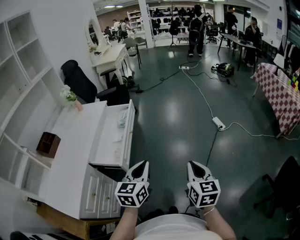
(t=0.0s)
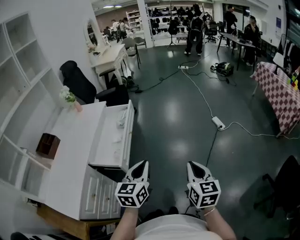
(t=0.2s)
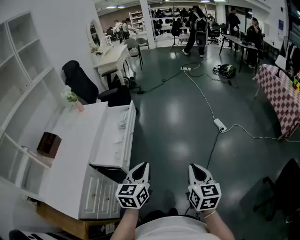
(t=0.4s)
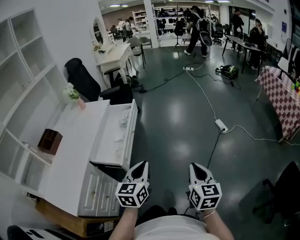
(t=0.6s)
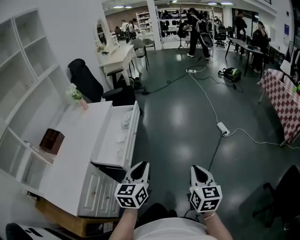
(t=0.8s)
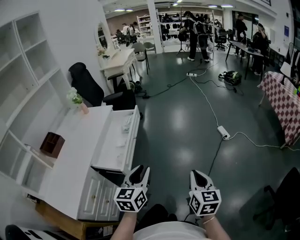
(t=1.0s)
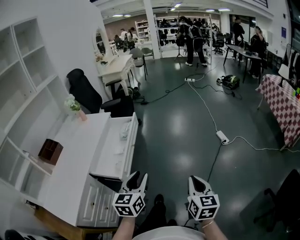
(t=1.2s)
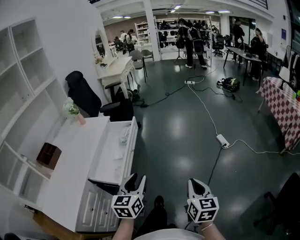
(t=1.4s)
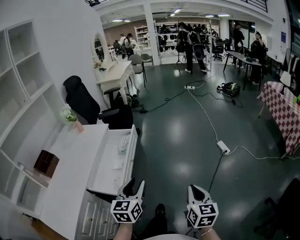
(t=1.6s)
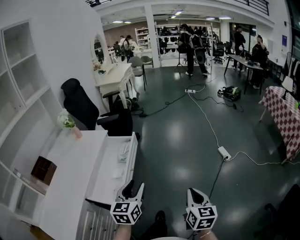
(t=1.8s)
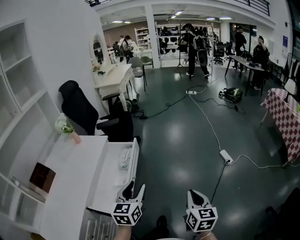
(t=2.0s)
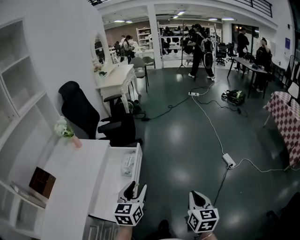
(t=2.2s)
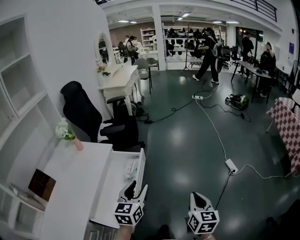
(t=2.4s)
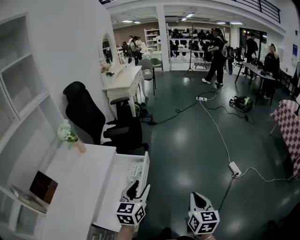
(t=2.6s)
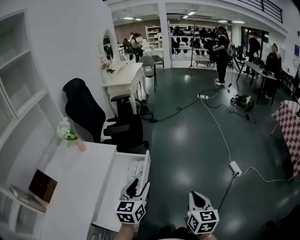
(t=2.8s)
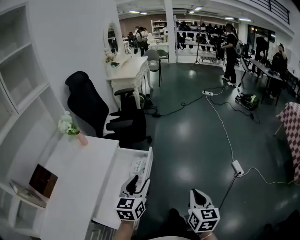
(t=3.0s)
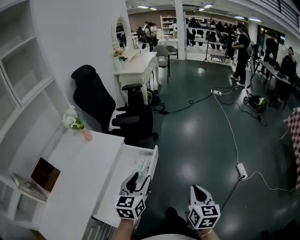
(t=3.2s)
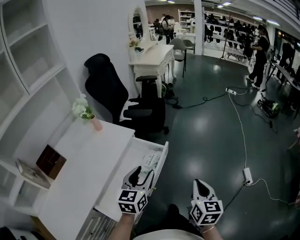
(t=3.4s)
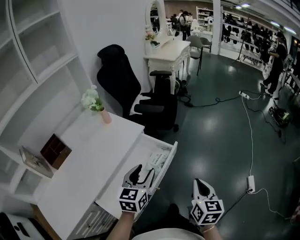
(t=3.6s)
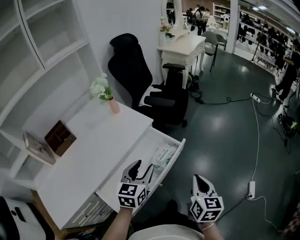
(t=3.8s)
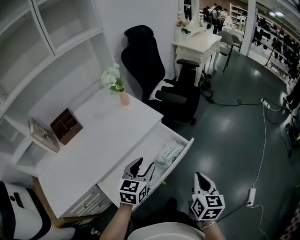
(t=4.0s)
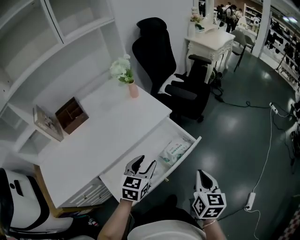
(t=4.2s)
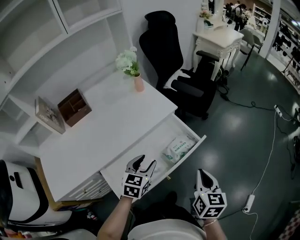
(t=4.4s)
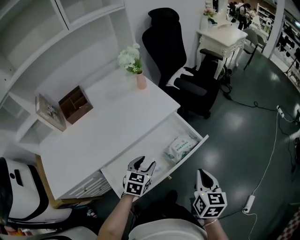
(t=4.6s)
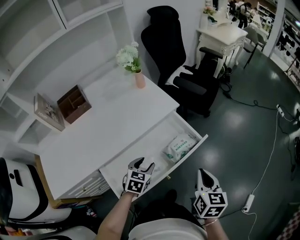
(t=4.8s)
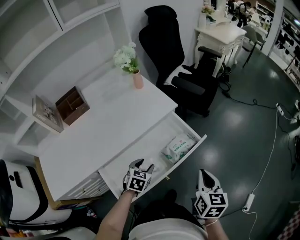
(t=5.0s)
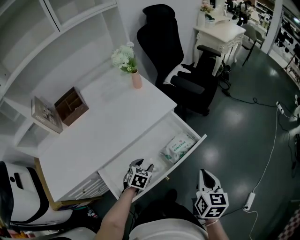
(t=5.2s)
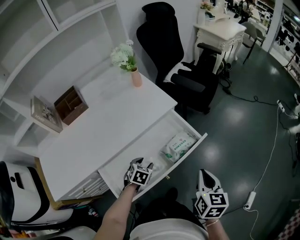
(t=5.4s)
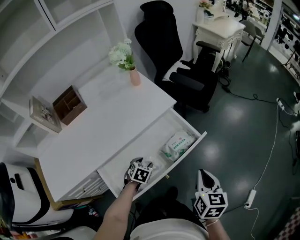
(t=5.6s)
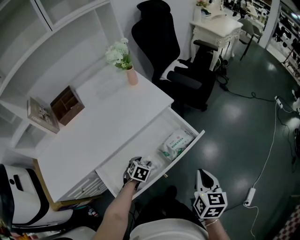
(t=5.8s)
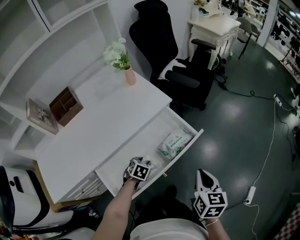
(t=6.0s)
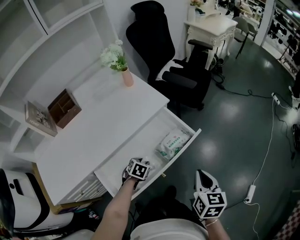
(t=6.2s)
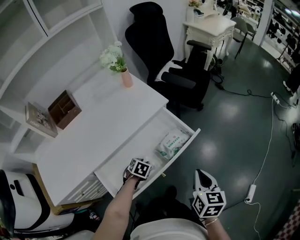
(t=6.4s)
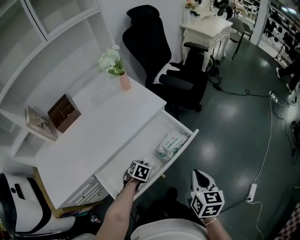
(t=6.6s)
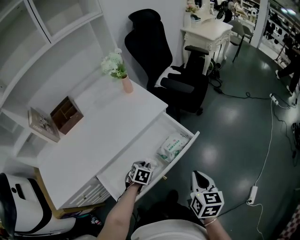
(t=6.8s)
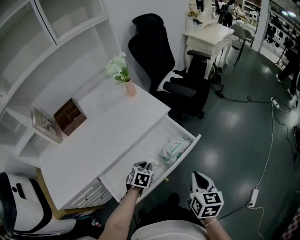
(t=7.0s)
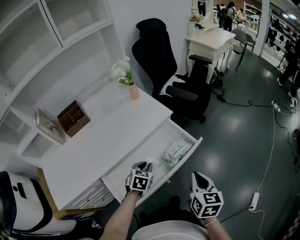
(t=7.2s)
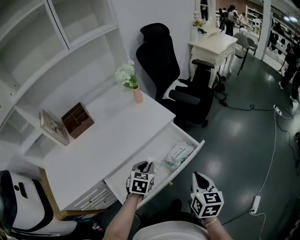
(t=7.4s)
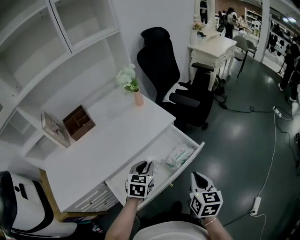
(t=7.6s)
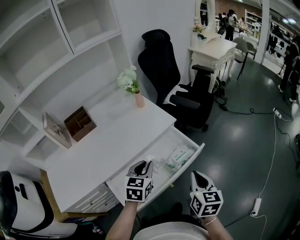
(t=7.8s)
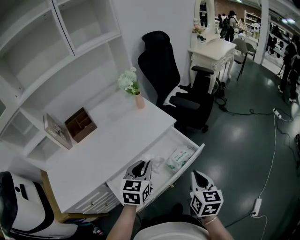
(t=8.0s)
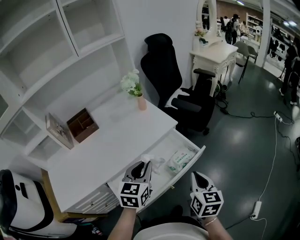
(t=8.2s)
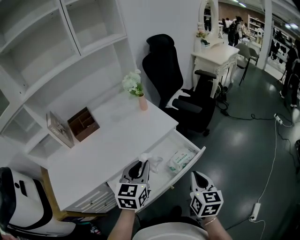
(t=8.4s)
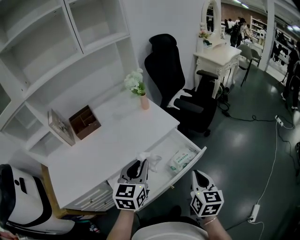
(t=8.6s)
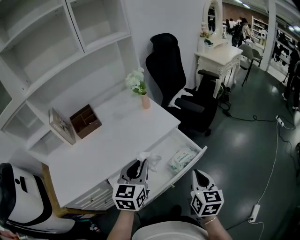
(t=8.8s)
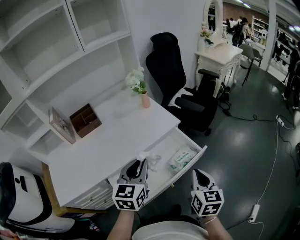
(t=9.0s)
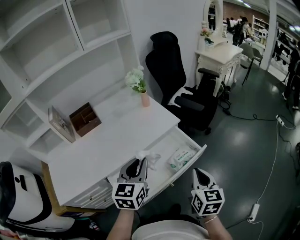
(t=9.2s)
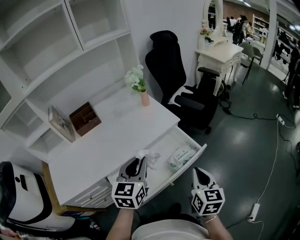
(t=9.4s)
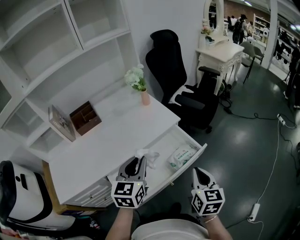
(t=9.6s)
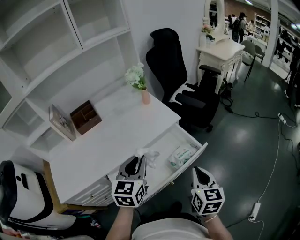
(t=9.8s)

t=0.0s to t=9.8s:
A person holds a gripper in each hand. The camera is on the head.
t=0.0s to t=1.4s: The right gripper shifts by some 5 cm, while the left gripper goes roughly 5 cm forward, and opens.
t=1.4s to t=2.8s: The left gripper is displaced forward by about 30 cm. Meanwhile the right gripper heads forward and to the left, covering about 30 cm.
t=2.8s to t=4.2s: The left gripper ends up some 15 cm from where it was, and turns by about 30 degrees; the right gripper ends up roughly 20 cm from where it was, and rotates approximately 40 degrees.
t=4.2s to t=5.6s: The left gripper heads downward, covering some 20 cm, and angles its fingers downward, by some 40 degrees.
t=5.6s to t=7.0s: The left gripper is displaced upward by approximately 5 cm, and closes its fingers.
t=7.0s to t=8.4s: The right gripper shifts by roughly 5 cm, while the left gripper is displaced upward by roughly 25 cm, and tilts its fingers approximately 40 degrees upward.
t=8.4s to t=9.8s: There are only small adjustments of the grippers.

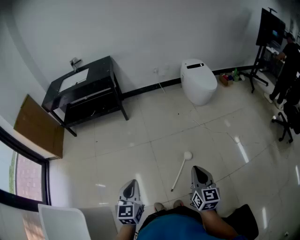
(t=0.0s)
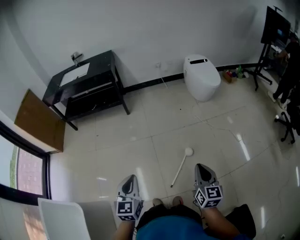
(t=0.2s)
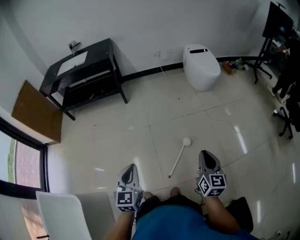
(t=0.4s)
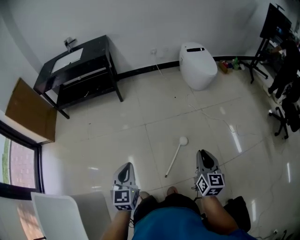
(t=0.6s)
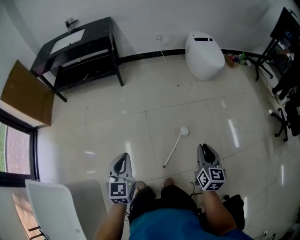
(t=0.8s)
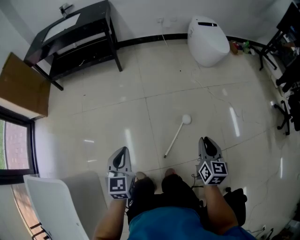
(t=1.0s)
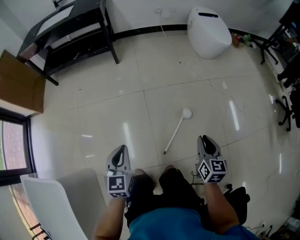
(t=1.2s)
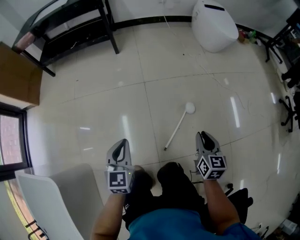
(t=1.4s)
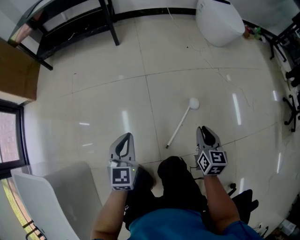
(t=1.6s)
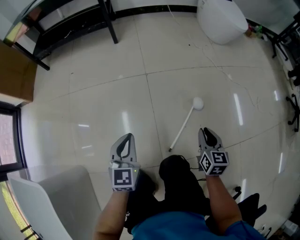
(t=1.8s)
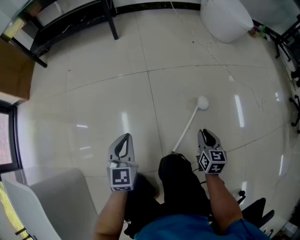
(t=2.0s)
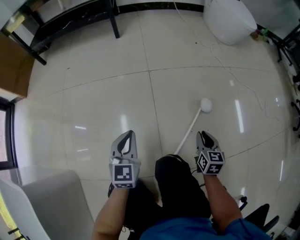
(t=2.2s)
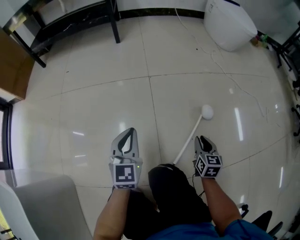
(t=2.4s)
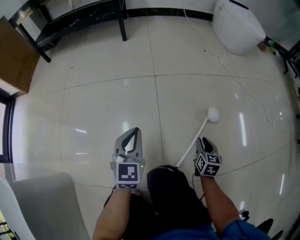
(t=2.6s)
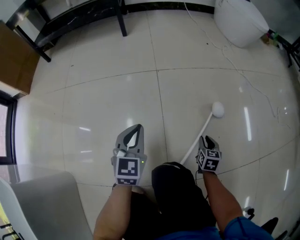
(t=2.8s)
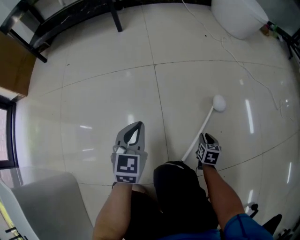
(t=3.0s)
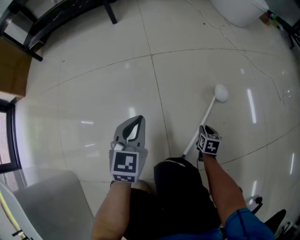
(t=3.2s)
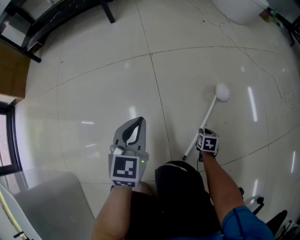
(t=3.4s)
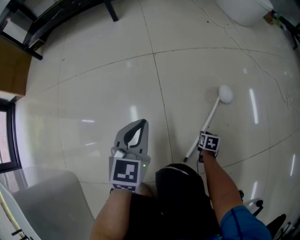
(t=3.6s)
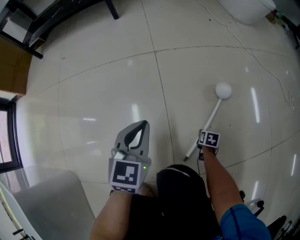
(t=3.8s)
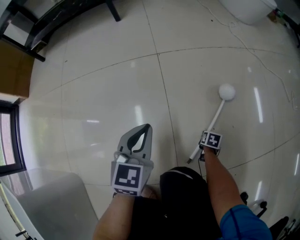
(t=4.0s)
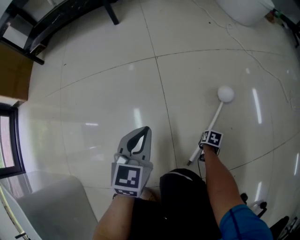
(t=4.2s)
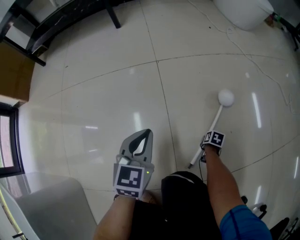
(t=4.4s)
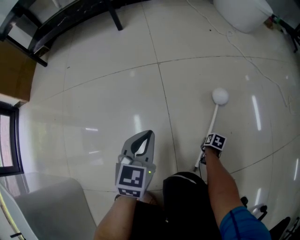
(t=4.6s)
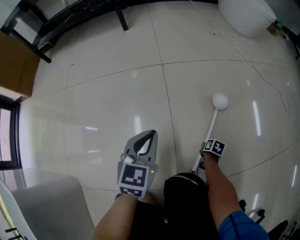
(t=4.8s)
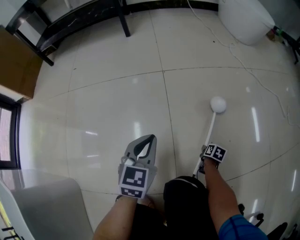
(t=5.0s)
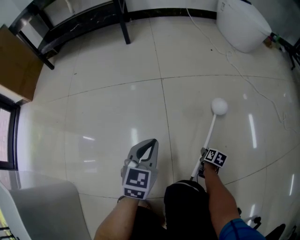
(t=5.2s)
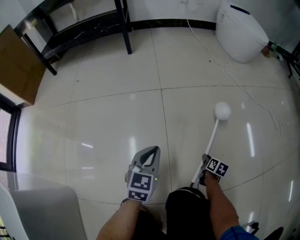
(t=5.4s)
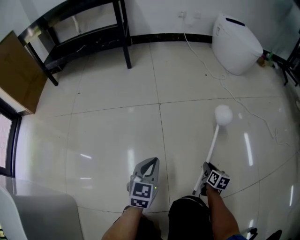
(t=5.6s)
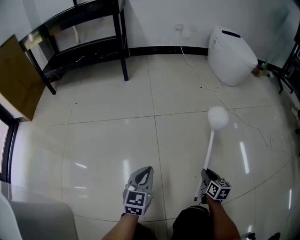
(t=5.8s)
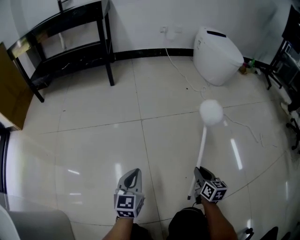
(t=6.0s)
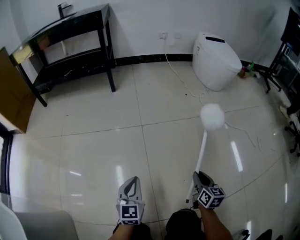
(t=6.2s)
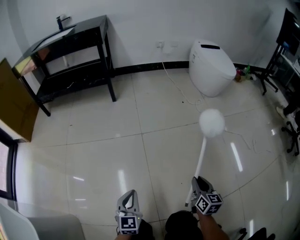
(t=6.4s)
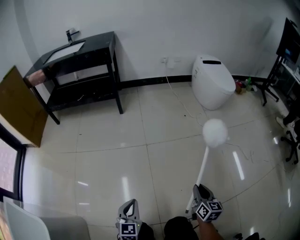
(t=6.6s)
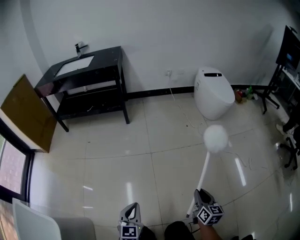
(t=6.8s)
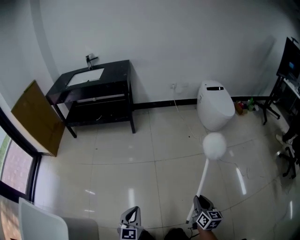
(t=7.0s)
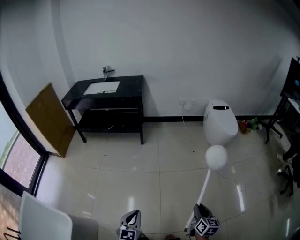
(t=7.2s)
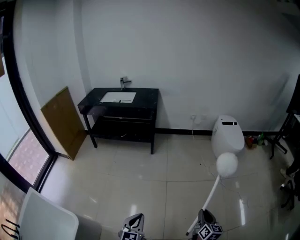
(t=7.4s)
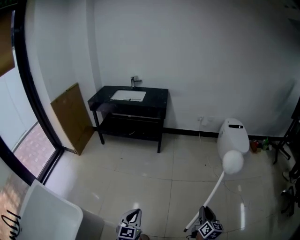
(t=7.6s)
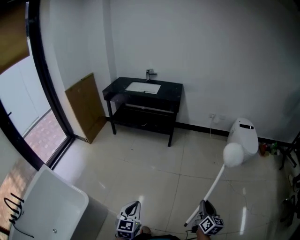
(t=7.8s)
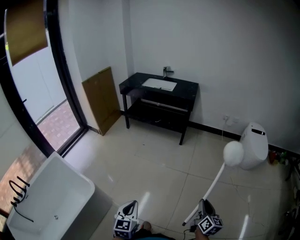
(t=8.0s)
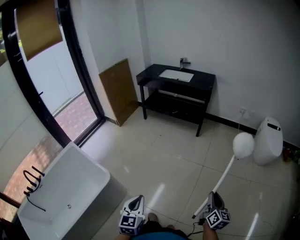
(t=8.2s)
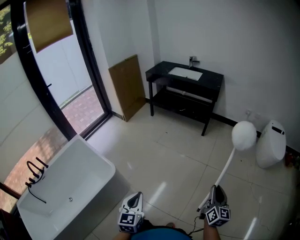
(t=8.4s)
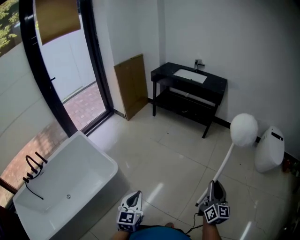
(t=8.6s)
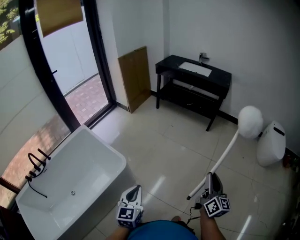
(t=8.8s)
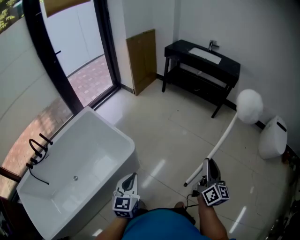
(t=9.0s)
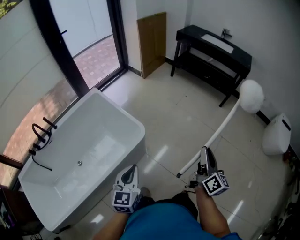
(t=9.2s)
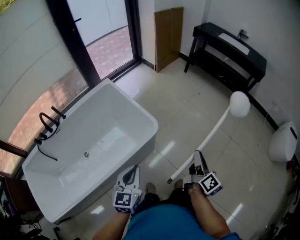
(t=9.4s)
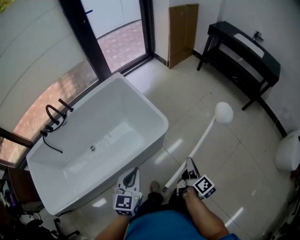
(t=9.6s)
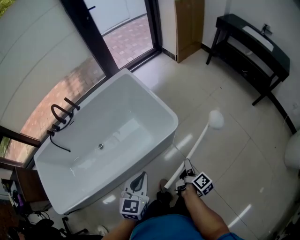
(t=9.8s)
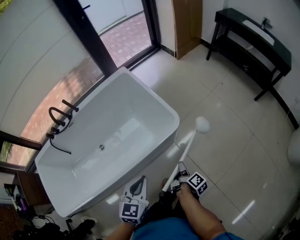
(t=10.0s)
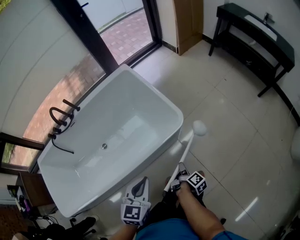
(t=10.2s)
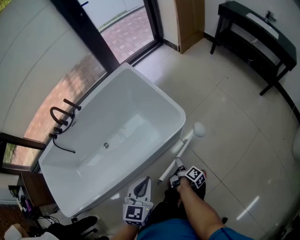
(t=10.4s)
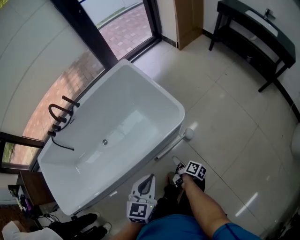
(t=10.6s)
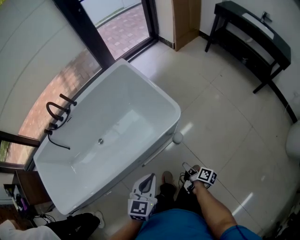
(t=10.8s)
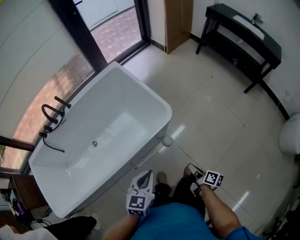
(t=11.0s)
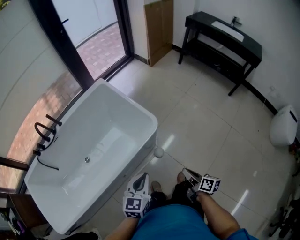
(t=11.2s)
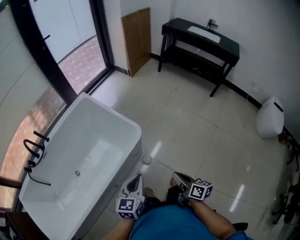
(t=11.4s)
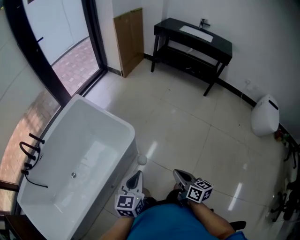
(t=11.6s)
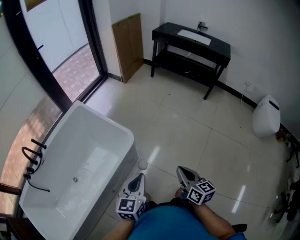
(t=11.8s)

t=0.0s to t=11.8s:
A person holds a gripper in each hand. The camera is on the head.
t=0.0s to t=1.4s: Both grippers travel together downward, approximately 30 cm. The right gripper opens.
t=1.4s to t=3.0s: The grippers both shift downward by approximately 50 cm. The right gripper turns by some 20 degrees.
t=3.0s to t=4.4s: The right gripper shifts about 15 cm downward, and rotates roughly 30 degrees.
t=4.4s to t=6.0s: The left gripper goes approximately 5 cm upward. The right gripper shifts roughly 35 cm upward, and tilts its fingers some 50 degrees upward.
t=6.0s to t=7.4s: The grippers both shift upward by approximately 60 cm.
t=7.4s to t=8.8s: The right gripper shifts by about 35 cm, and turns by some 40 degrees, while the left gripper shifts by roughly 40 cm, and changes its angle by roughly 30 degrees.
t=8.8s to t=10.4s: The left gripper ends up about 35 cm from where it was, and rotates about 20 degrees; the right gripper changes place by about 70 cm, points its fingers some 40 degrees further downward, and opens.
t=10.4s to t=11.8s: The right gripper is displaced upward and to the right by some 35 cm, twists roughly 60 degrees counterclockwise, seen from behind, and closes. Meanwhile the left gripper travels to the right and upward by approximately 20 cm, and swivels about 20 degrees.

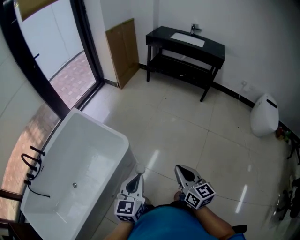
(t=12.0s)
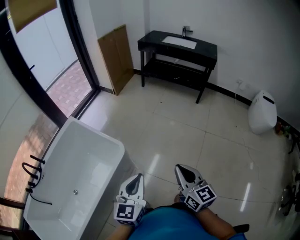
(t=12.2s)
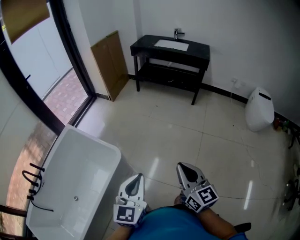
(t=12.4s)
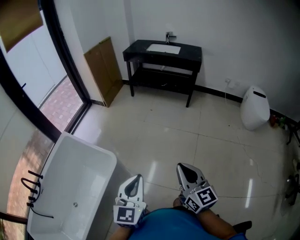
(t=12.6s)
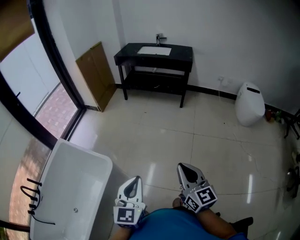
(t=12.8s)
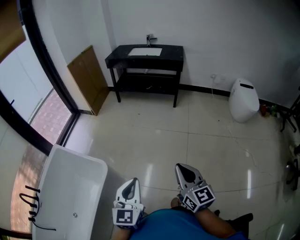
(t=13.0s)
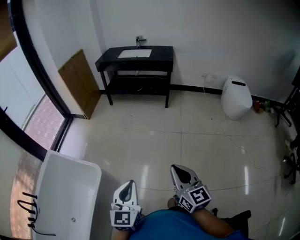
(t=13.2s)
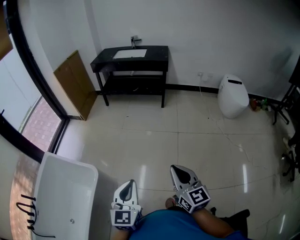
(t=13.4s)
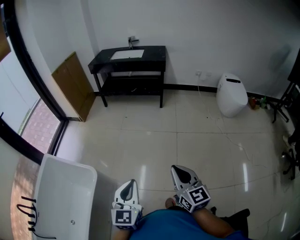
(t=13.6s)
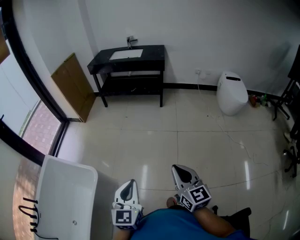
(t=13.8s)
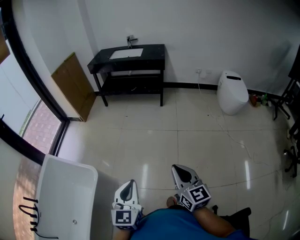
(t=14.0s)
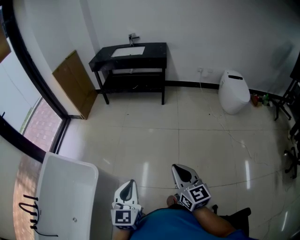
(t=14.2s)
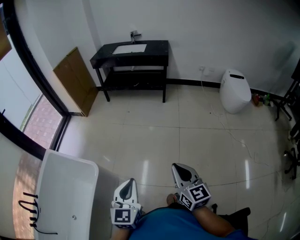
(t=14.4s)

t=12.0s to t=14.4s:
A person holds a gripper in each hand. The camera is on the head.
t=12.0s to t=13.2s: The left gripper heads to the right, covering about 20 cm. Meanwhile the right gripper goes some 20 cm to the right and upward, and swivels roughly 20 degrees.
t=13.2s to t=14.4s: The right gripper changes place by roughly 5 cm.
